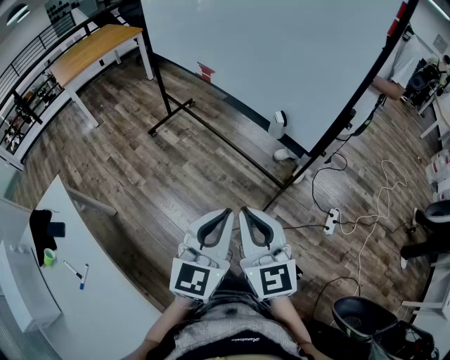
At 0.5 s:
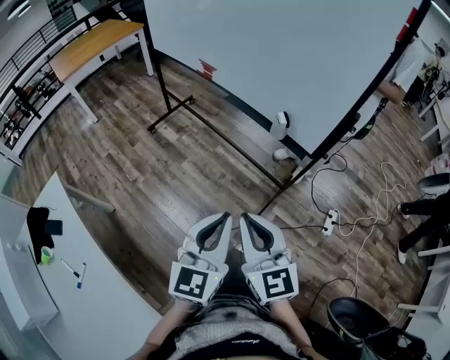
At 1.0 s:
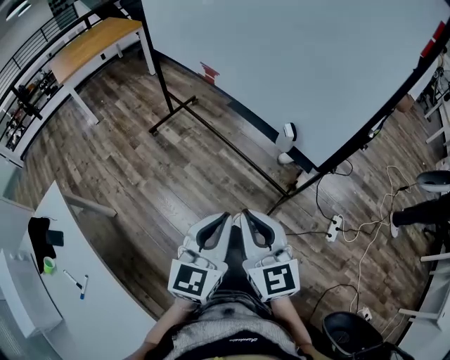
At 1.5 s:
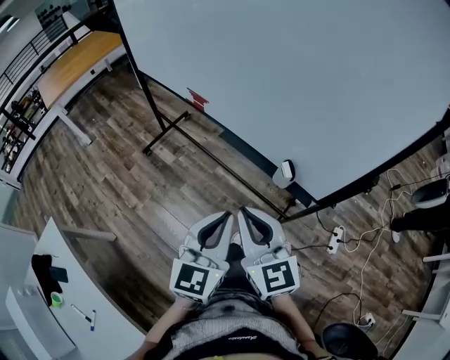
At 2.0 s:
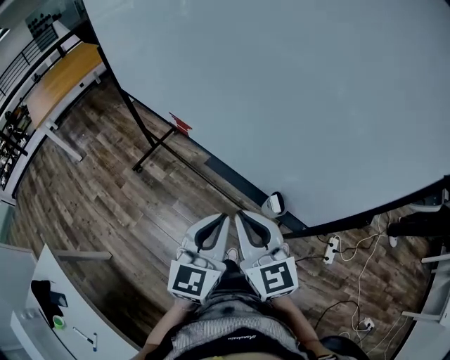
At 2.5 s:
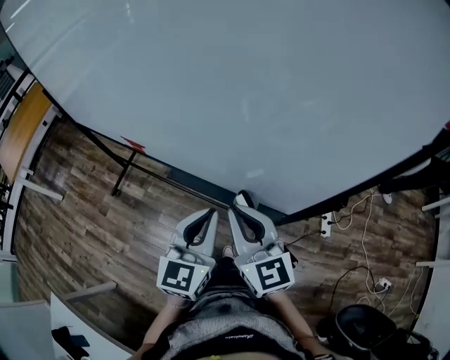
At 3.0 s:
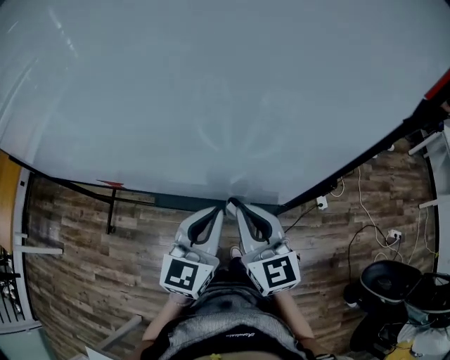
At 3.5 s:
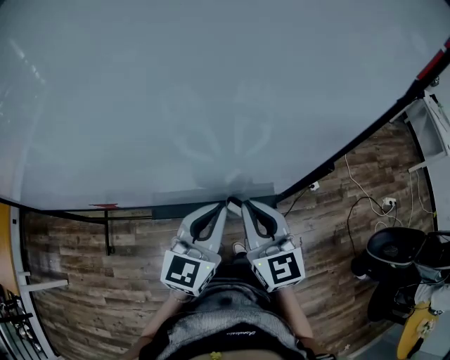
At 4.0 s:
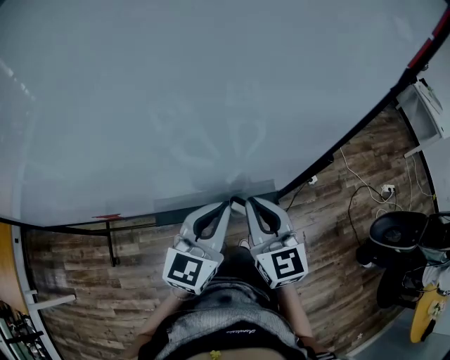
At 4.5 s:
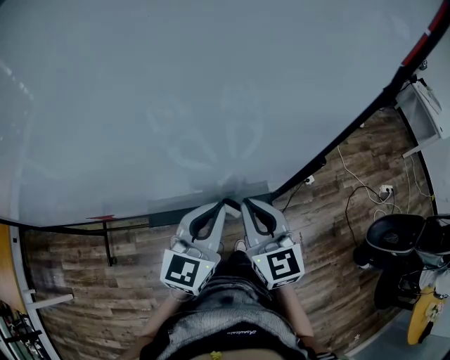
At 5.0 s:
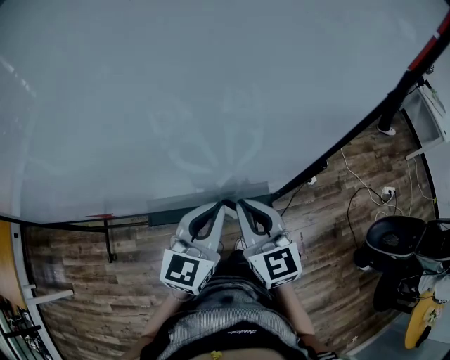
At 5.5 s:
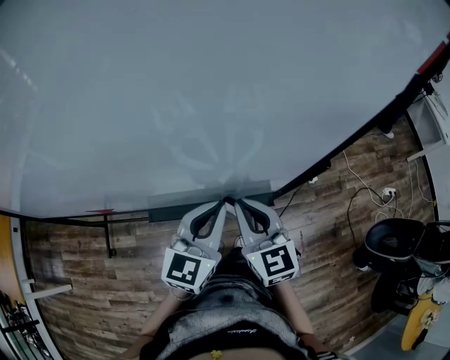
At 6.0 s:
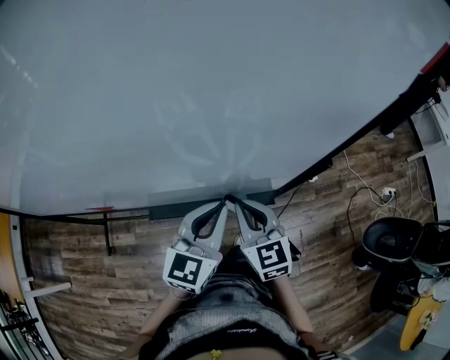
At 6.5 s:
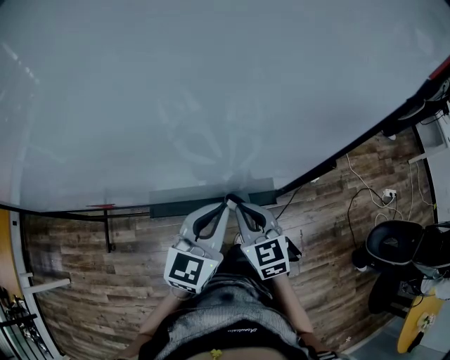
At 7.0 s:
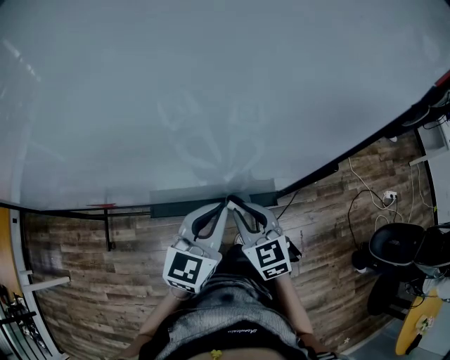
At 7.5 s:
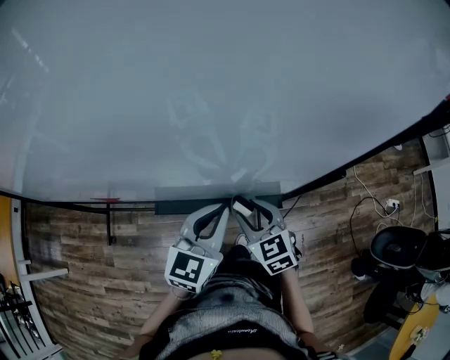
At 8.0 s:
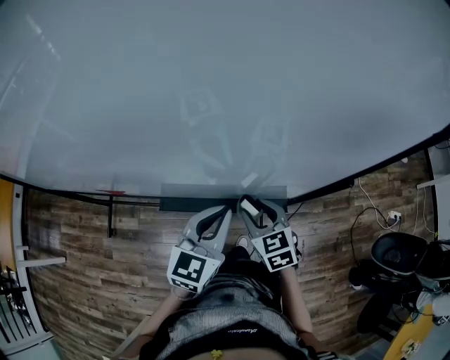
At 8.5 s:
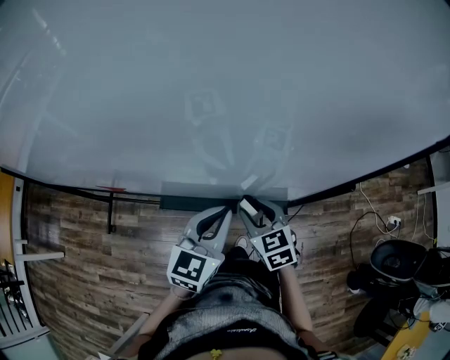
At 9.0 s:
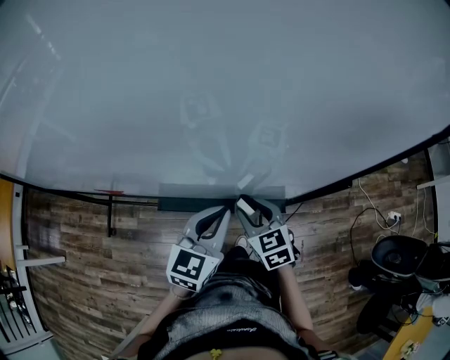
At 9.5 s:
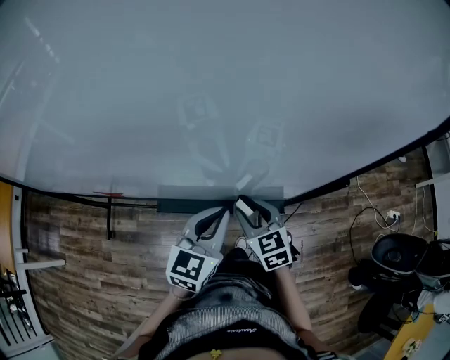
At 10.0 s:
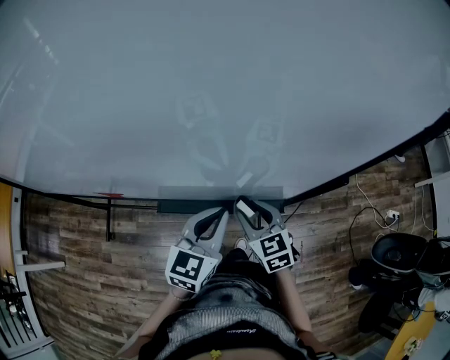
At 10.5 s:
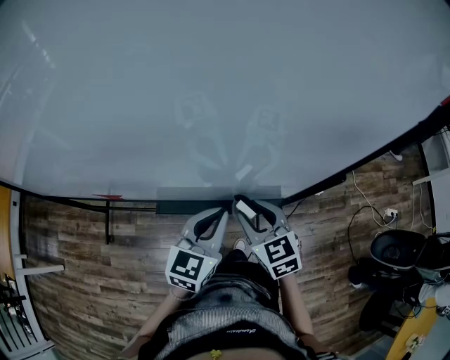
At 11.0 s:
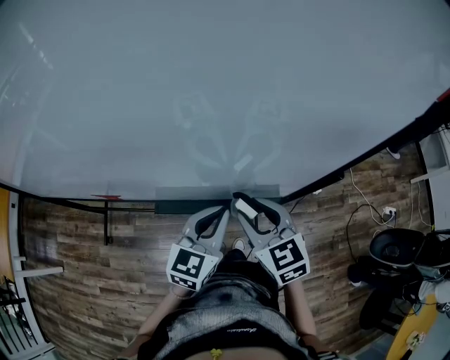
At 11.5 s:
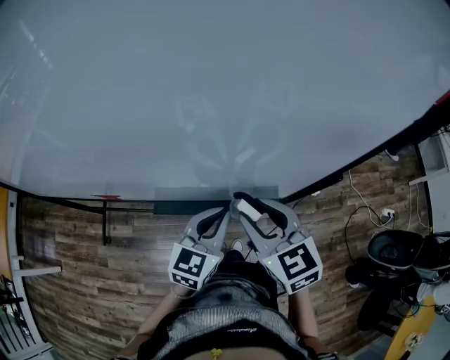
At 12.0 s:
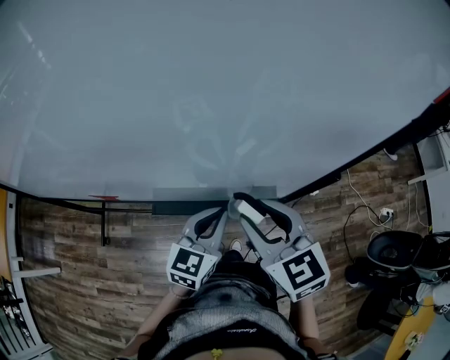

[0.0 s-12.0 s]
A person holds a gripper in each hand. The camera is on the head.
0.0 to 2.0 s: Both grippers travel together forward, about 35 cm.
2.0 to 4.0 s: The left gripper shifts by some 15 cm, and rotates roughly 50 degrees. The right gripper moves about 15 cm, and changes its angle by approximately 50 degrees.
4.0 to 6.0 s: The right gripper moves downward, about 5 cm.
6.0 to 8.0 s: The right gripper moves downward, approximately 10 cm, and opens up.
8.0 to 10.0 s: The grippers move only a little.
10.0 to 12.0 s: The right gripper is displaced upward by some 15 cm.

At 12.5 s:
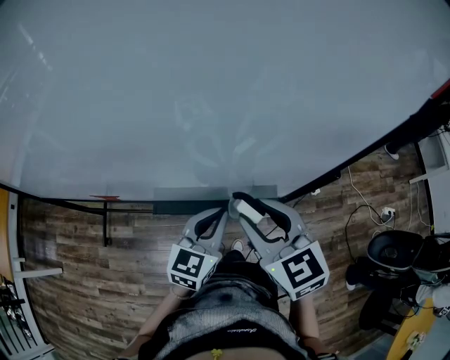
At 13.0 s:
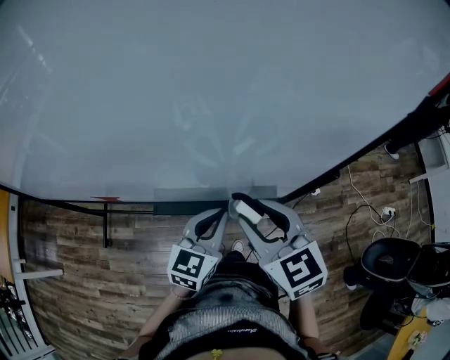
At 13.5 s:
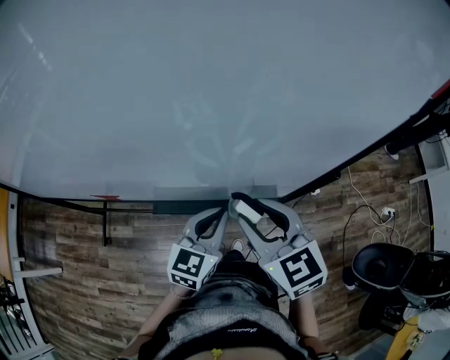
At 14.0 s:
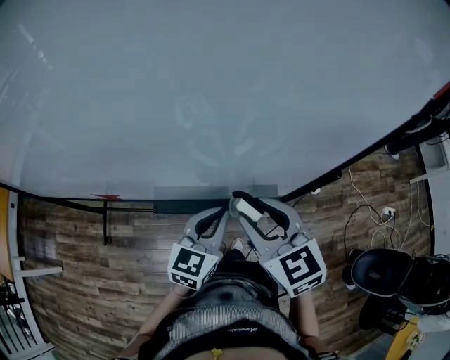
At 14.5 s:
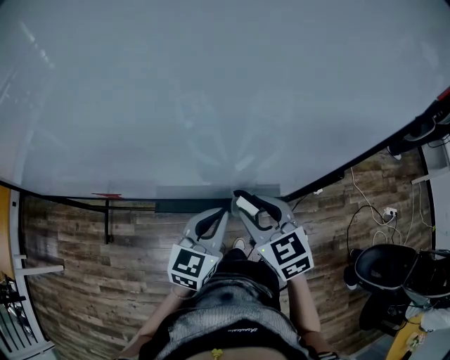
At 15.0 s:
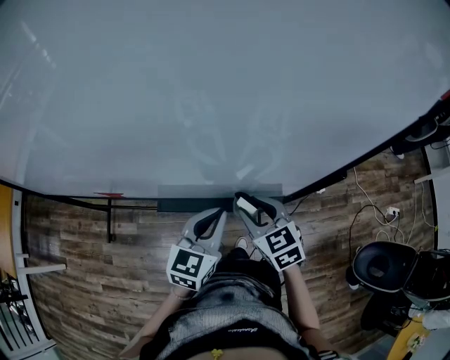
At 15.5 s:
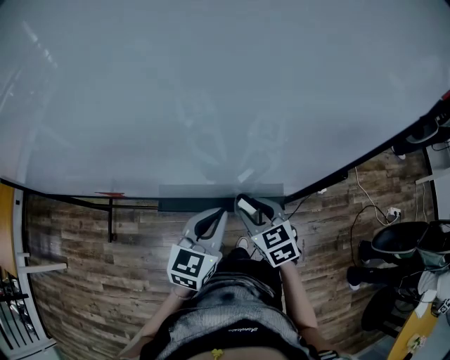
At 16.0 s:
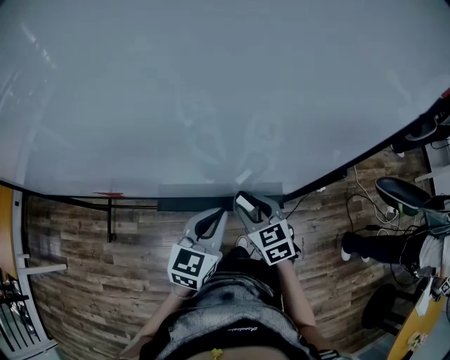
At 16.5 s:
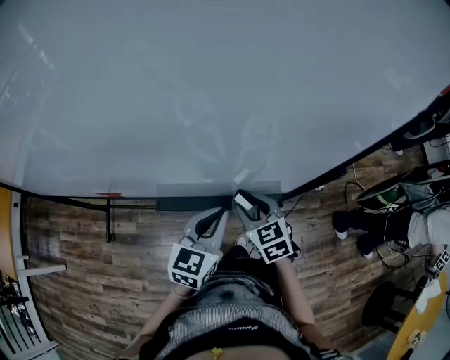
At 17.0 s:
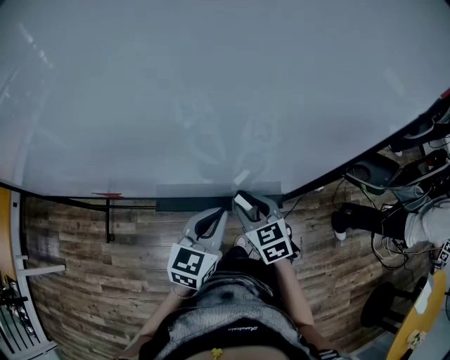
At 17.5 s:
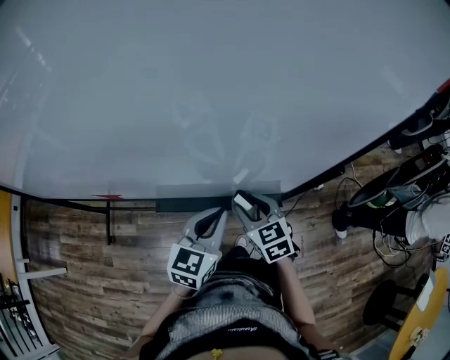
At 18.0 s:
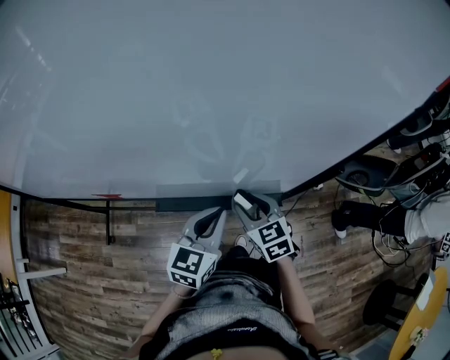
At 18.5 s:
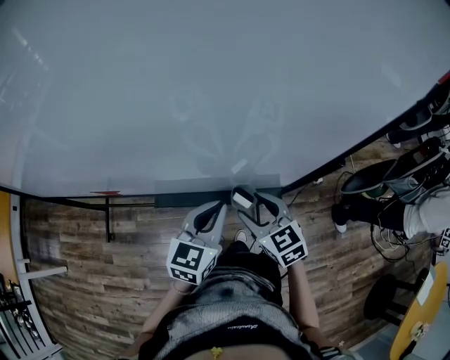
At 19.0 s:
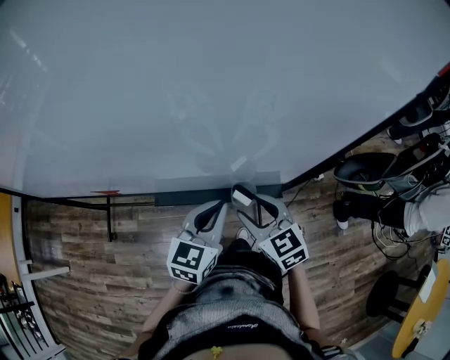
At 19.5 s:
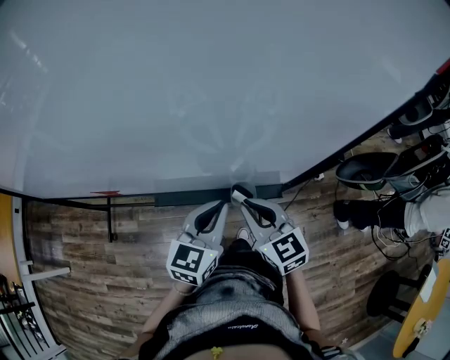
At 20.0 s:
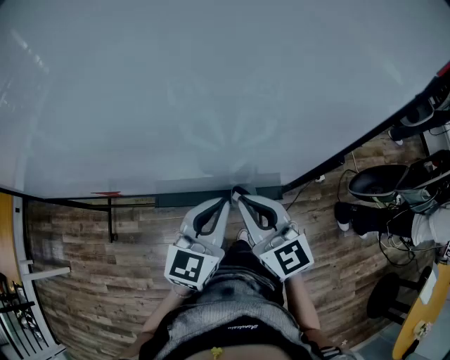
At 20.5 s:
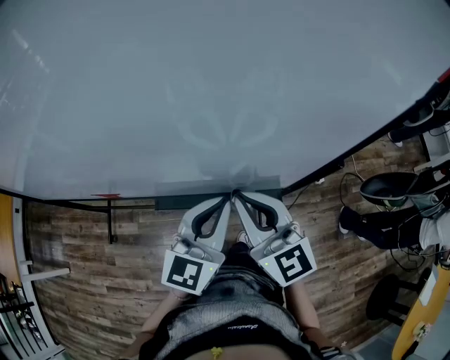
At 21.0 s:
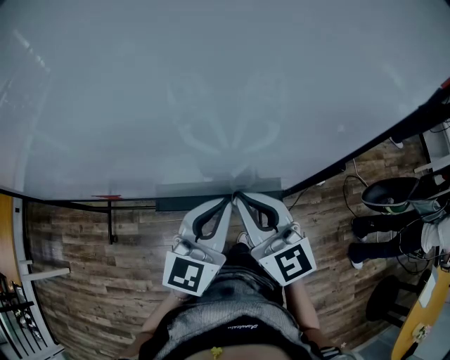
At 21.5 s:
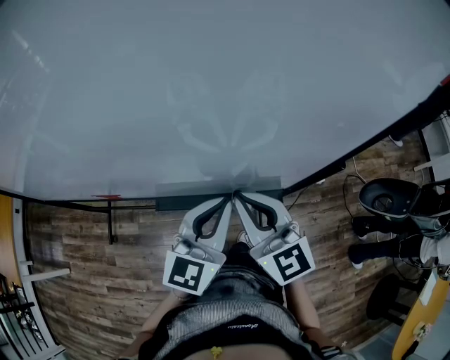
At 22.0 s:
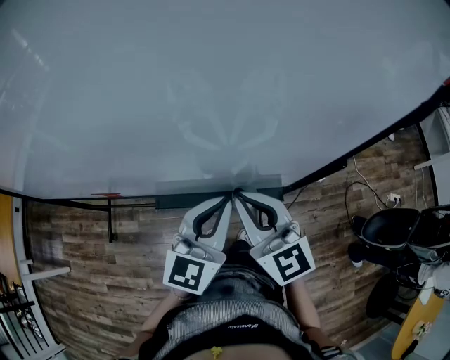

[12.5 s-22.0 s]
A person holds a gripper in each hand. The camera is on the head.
12.5 to 14.5 s: The right gripper is displaced downward by roughly 5 cm.
14.5 to 16.5 s: The right gripper travels downward by roughly 10 cm.
16.5 to 18.0 s: Both grippers stay put.
18.0 to 20.0 s: The right gripper moves upward, about 15 cm, swivels roughly 30 degrees, and closes its fingers, while the left gripper heads upward, covering some 5 cm.
20.0 to 22.0 s: There are only small adjustments of the grippers.

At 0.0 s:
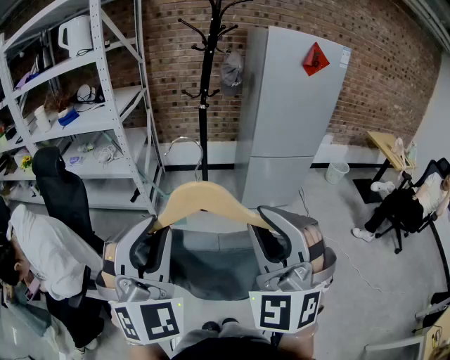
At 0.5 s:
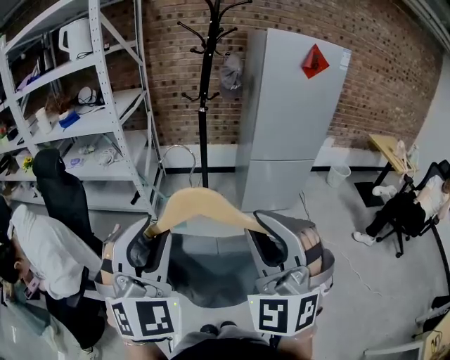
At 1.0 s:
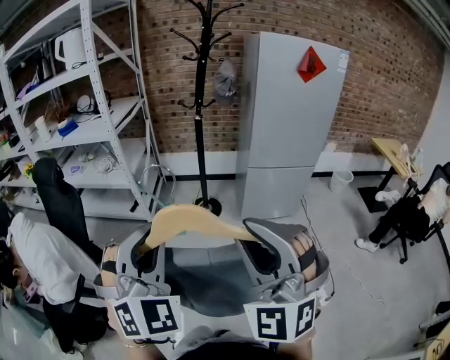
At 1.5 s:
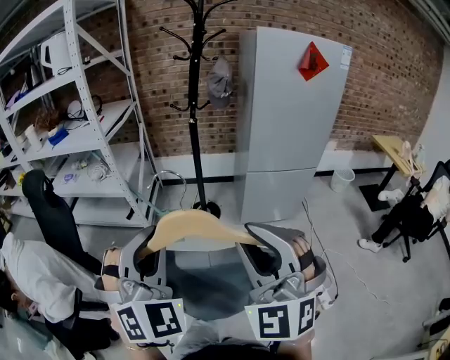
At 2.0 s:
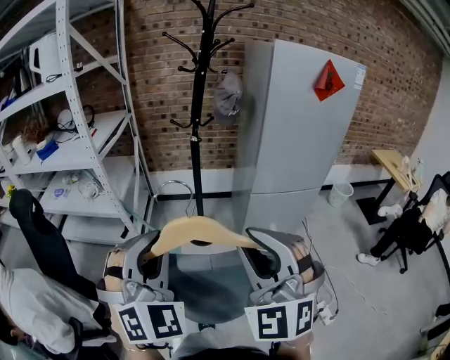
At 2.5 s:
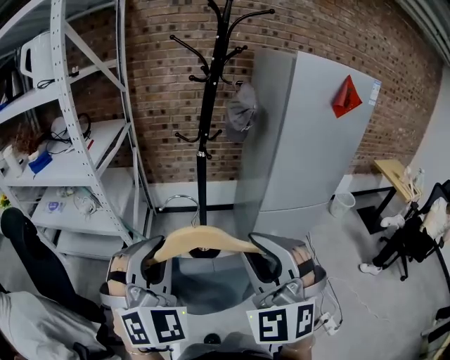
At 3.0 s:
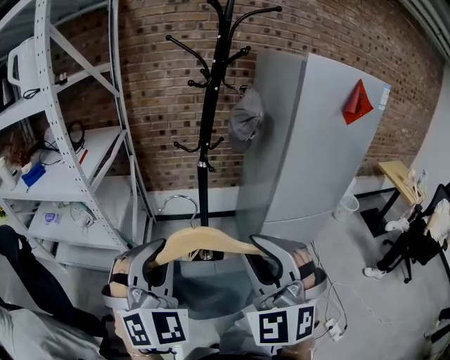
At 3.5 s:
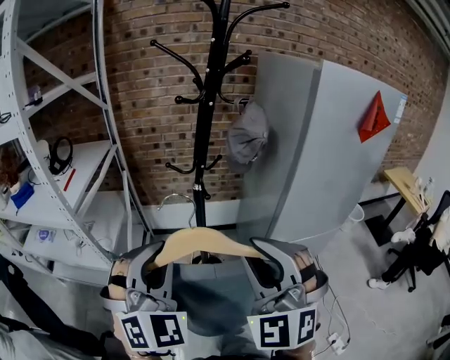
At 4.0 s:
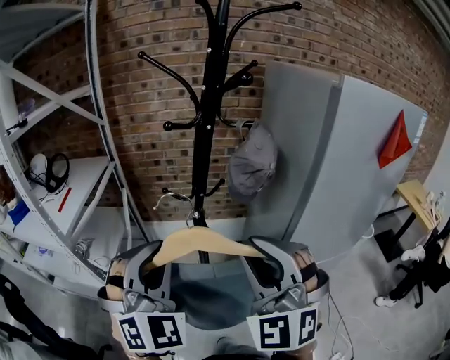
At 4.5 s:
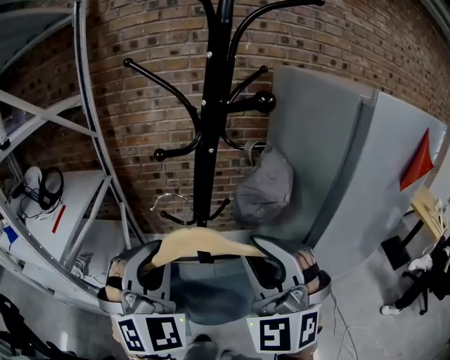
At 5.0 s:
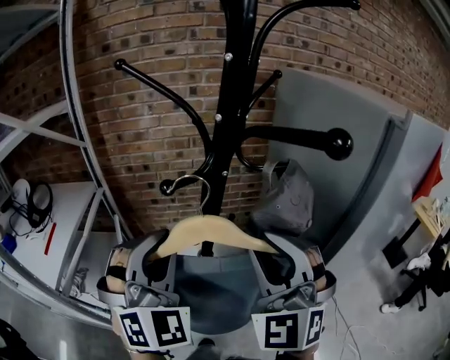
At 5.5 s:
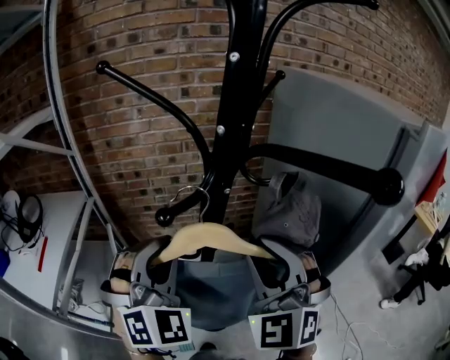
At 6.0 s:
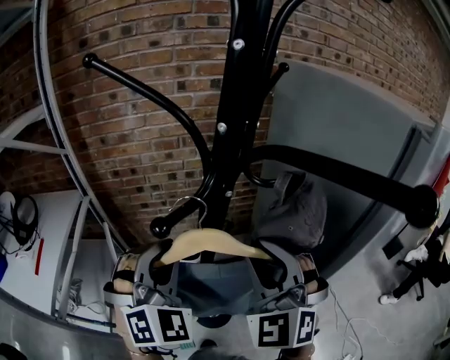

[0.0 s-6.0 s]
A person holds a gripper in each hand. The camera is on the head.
0.0 to 2.0 s: The grippers both shift forward by roughly 20 cm.
2.0 to 4.0 s: The pair of grippers is taken forward, approximately 40 cm.
4.0 to 6.0 s: The two grippers go roughly 25 cm forward.
